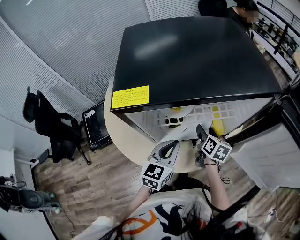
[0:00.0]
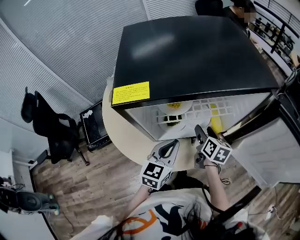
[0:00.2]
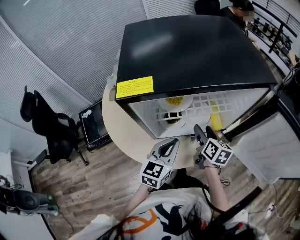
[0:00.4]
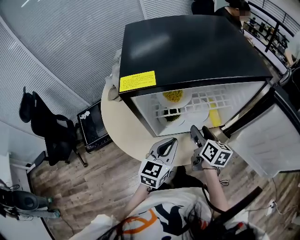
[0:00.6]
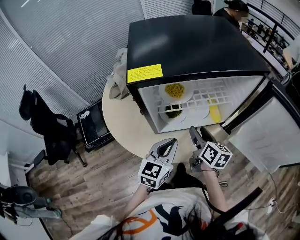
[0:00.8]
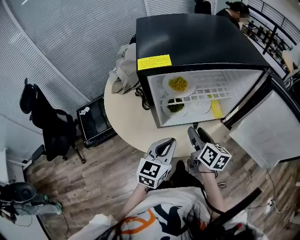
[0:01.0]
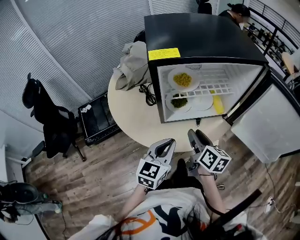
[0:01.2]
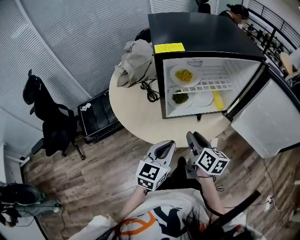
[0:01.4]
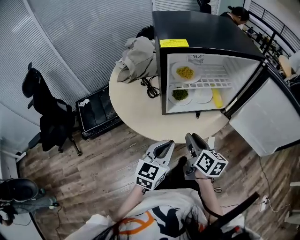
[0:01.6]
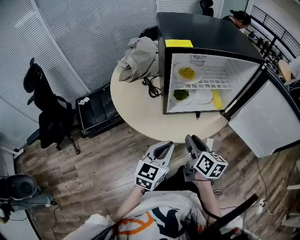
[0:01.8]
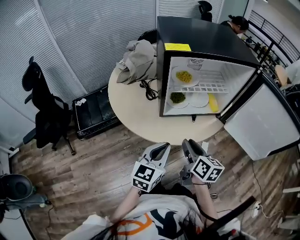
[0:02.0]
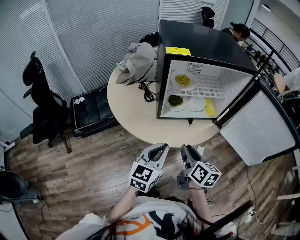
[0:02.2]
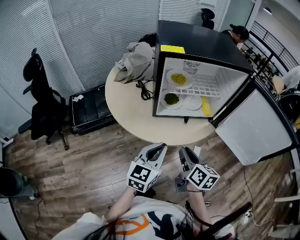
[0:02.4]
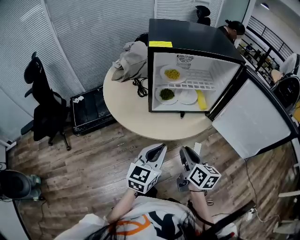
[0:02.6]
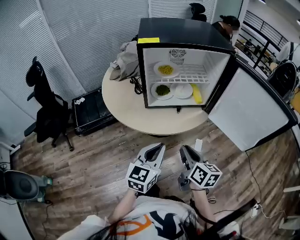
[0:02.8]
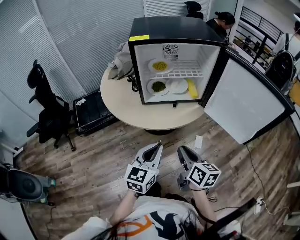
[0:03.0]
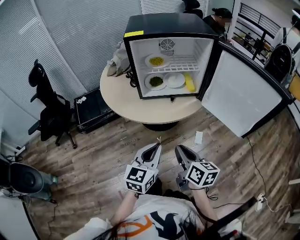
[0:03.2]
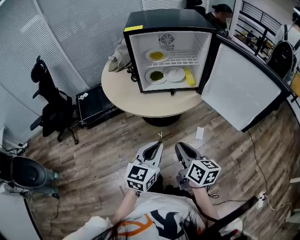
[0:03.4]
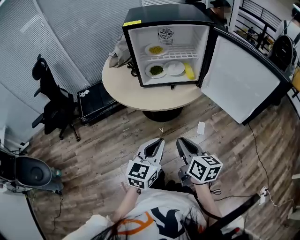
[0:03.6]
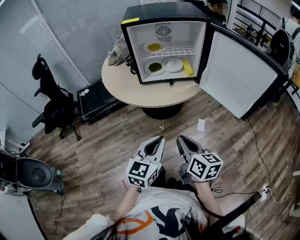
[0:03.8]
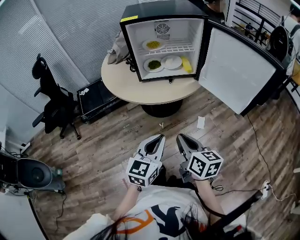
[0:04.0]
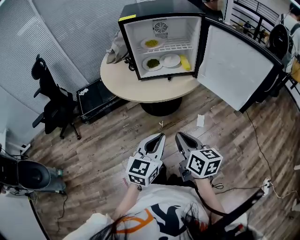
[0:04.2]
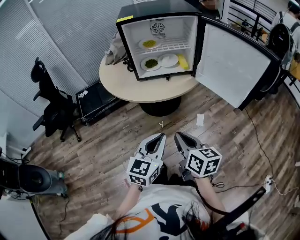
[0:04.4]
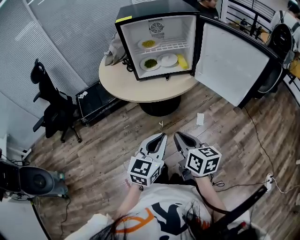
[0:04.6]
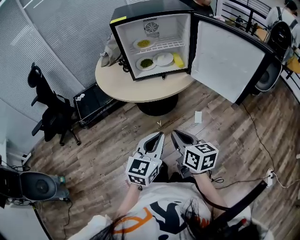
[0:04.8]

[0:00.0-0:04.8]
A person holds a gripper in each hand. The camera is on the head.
0:00.0 to 0:01.6: The two grippers go some 20 cm backward. The right gripper closes.
0:01.6 to 0:03.2: The two grippers go about 20 cm backward and to the right.
0:03.2 to 0:04.8: The grippers both shift backward by approximately 10 cm.

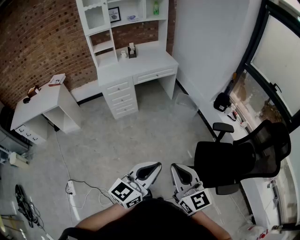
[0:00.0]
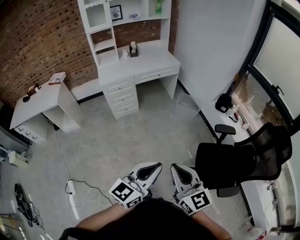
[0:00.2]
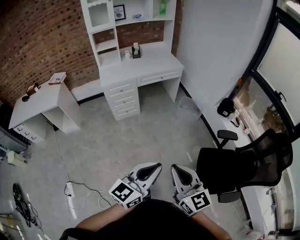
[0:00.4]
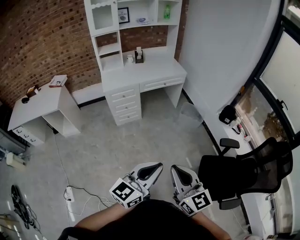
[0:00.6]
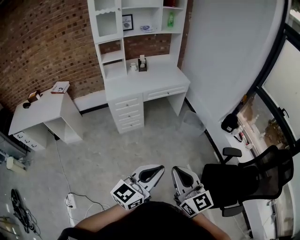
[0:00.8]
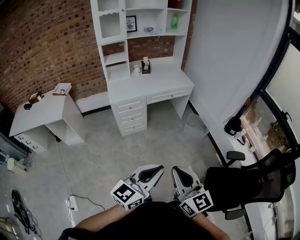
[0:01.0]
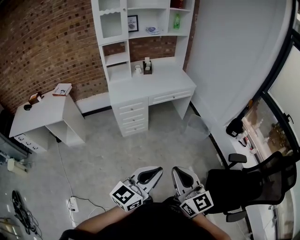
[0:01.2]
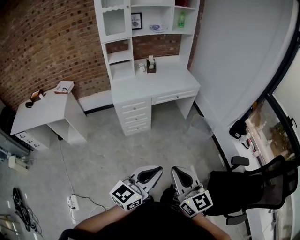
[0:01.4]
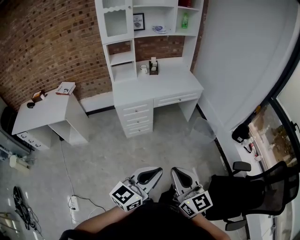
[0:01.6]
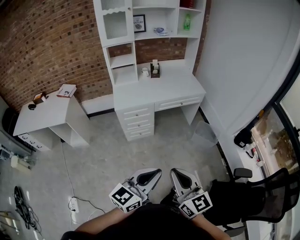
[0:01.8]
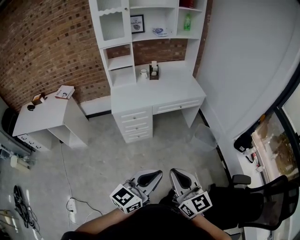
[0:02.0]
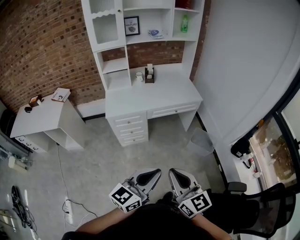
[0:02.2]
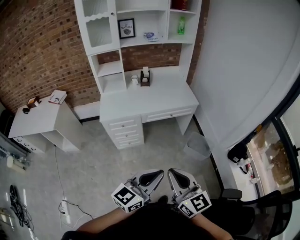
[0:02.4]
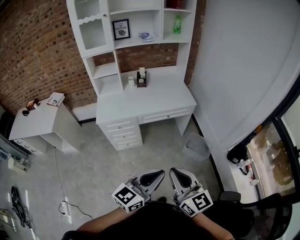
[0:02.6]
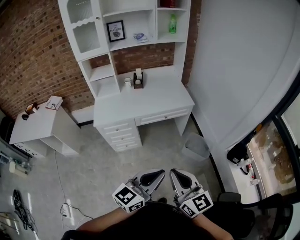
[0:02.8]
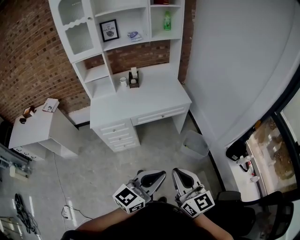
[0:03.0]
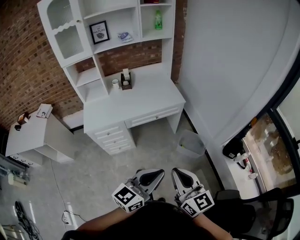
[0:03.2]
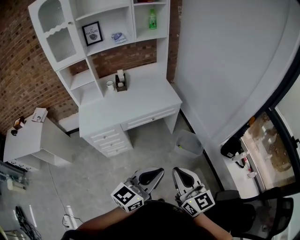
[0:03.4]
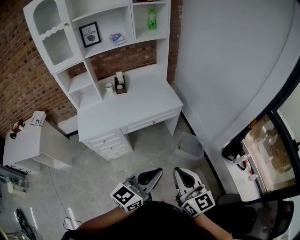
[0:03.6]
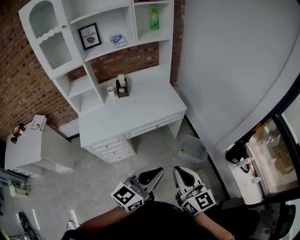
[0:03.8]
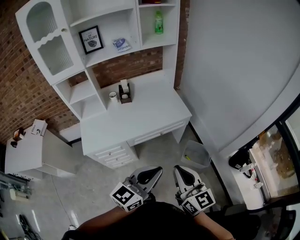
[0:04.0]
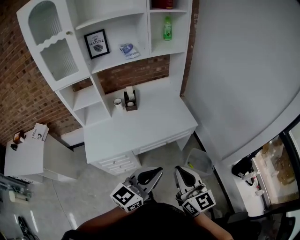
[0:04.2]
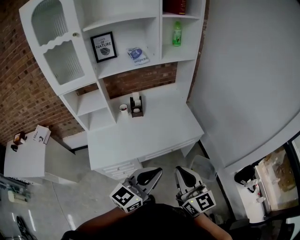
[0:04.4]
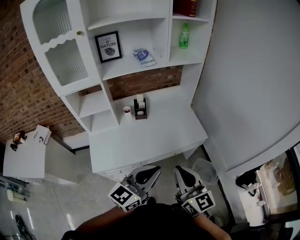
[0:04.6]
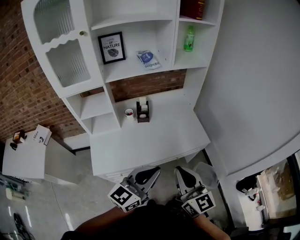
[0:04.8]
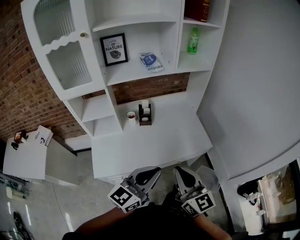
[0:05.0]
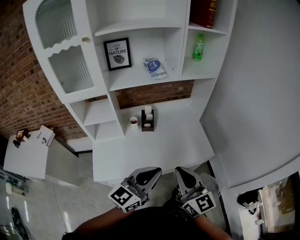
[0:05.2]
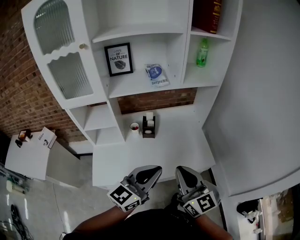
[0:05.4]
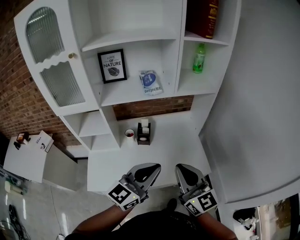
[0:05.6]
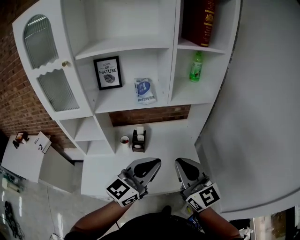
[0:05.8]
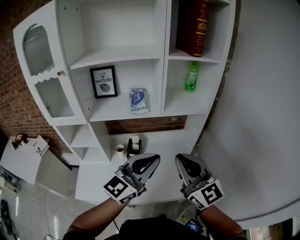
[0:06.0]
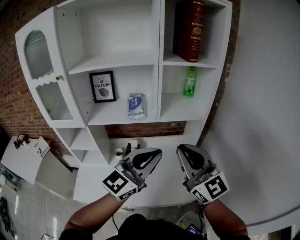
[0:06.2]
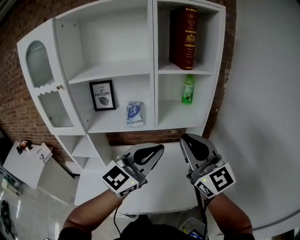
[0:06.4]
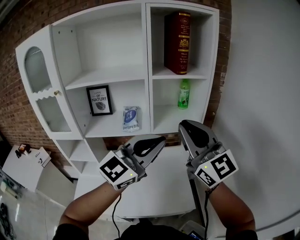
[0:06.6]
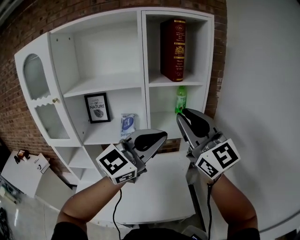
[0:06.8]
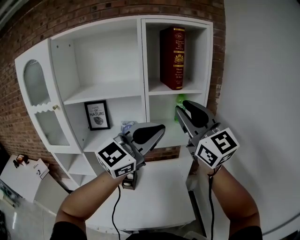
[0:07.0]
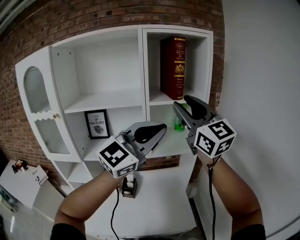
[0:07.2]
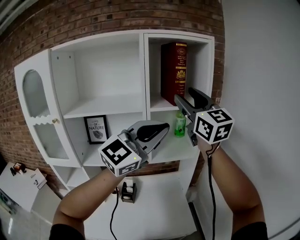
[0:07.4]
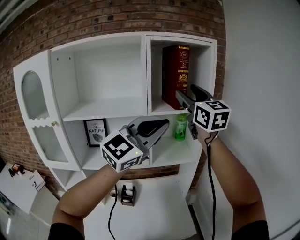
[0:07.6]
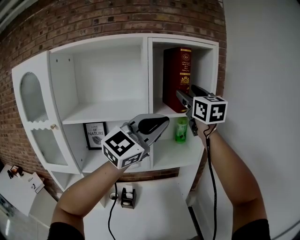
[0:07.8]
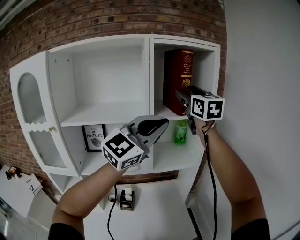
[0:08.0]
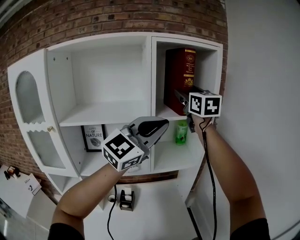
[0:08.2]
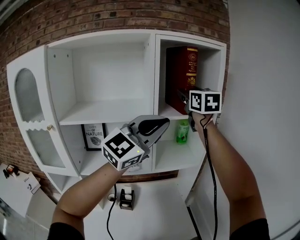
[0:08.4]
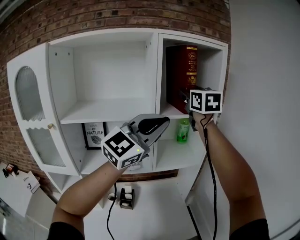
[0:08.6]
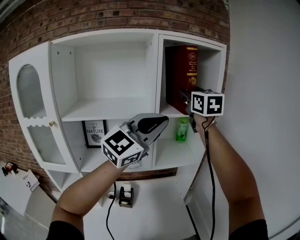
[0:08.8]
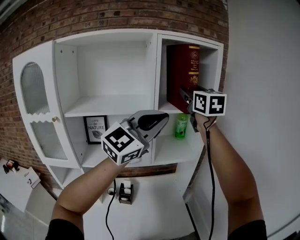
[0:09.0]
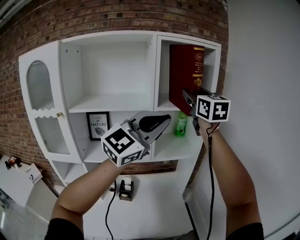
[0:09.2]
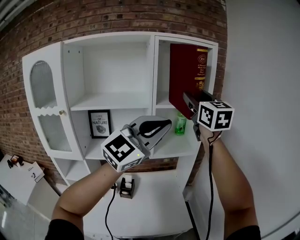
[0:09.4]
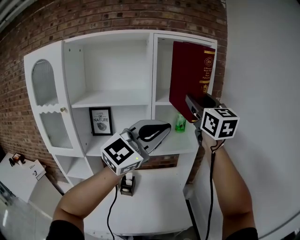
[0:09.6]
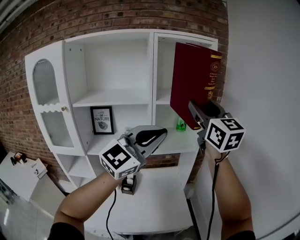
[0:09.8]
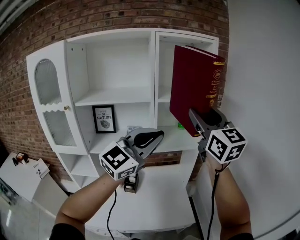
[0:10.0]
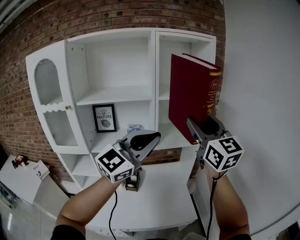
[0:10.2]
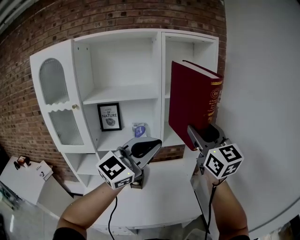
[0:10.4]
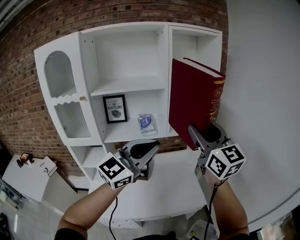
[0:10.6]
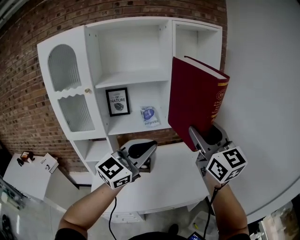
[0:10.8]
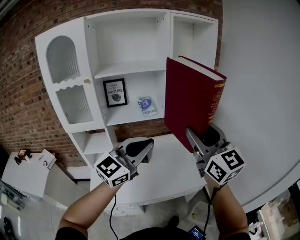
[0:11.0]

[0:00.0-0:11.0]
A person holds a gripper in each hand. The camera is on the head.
0:00.0 to 0:01.6: The grippers both shift forward and to the left by some 30 cm.
0:01.6 to 0:03.2: The grippers both shift forward and to the right by about 35 cm.
0:03.2 to 0:04.8: Both grippers are carried forward and to the left, about 40 cm.
0:04.8 to 0:06.2: The two grippers go roughly 35 cm forward, upward and to the right. The right gripper changes its angle by approximately 30 degrees, while the left gripper changes its angle by some 20 degrees.
0:06.2 to 0:07.8: The right gripper travels forward and upward by about 40 cm, and opens up; the left gripper moves upward and forward, roughly 25 cm, and rotates some 20 degrees.
0:07.8 to 0:09.4: Both grippers move backward, roughly 10 cm.
0:09.4 to 0:11.0: The left gripper travels backward, downward and to the left by about 30 cm, and rotates approximately 20 degrees; the right gripper moves backward and downward, some 35 cm.

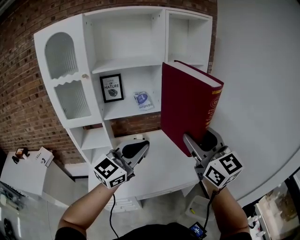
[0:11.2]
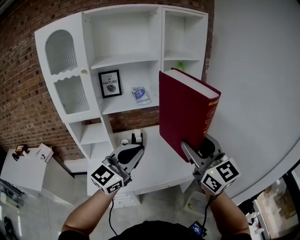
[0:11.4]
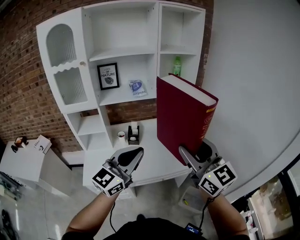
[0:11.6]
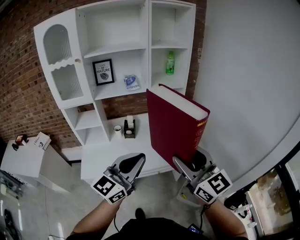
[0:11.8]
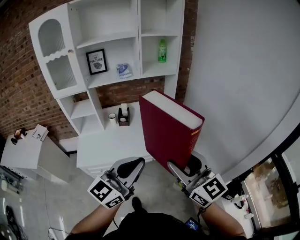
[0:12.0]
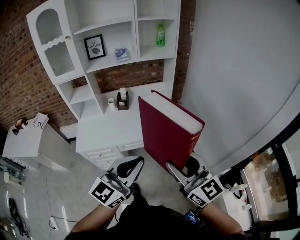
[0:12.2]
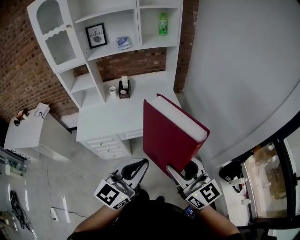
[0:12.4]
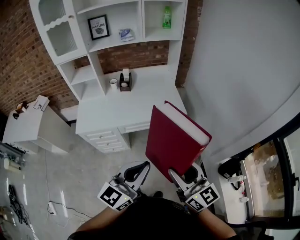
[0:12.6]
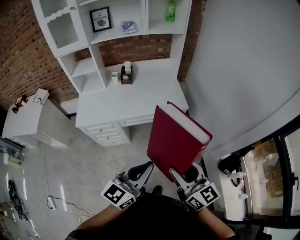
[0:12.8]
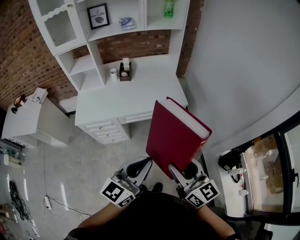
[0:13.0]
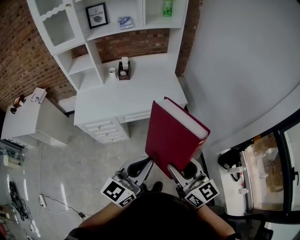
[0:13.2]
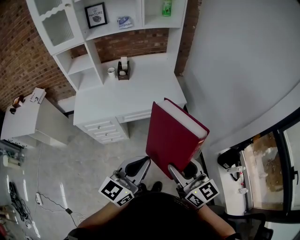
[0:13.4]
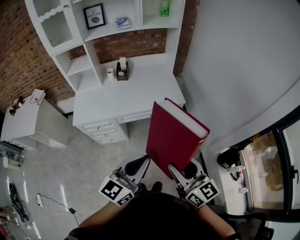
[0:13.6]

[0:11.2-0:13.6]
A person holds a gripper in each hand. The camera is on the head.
0:11.2 to 0:12.4: The right gripper heads backward, downward and to the right, covering roughly 40 cm. The left gripper is displaced backward, to the right and downward by some 40 cm.
0:12.4 to 0:13.6: Both grippers travel together downward, roughly 5 cm.

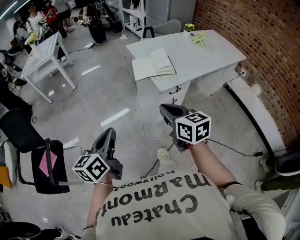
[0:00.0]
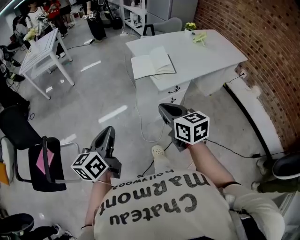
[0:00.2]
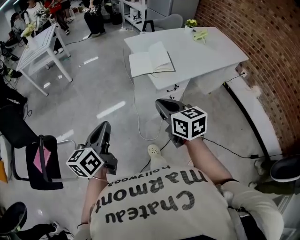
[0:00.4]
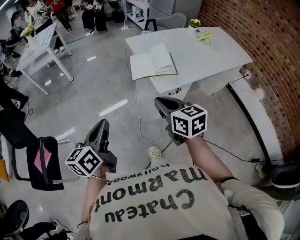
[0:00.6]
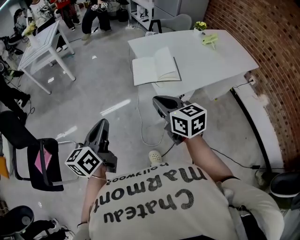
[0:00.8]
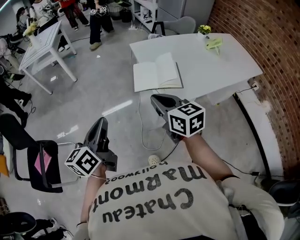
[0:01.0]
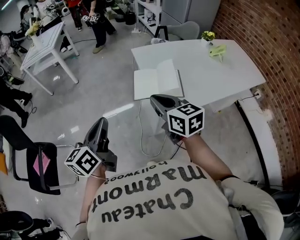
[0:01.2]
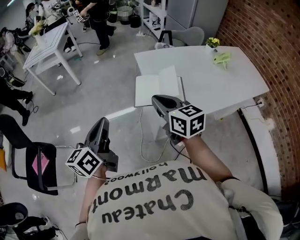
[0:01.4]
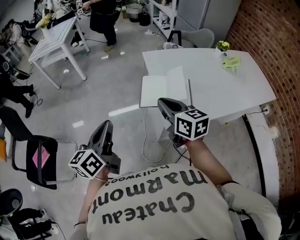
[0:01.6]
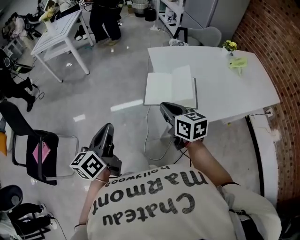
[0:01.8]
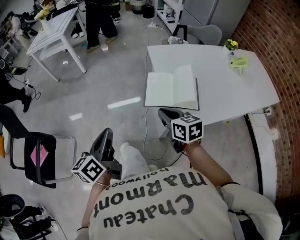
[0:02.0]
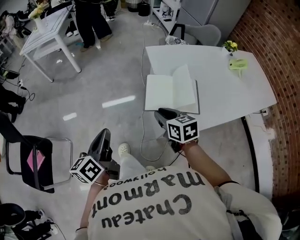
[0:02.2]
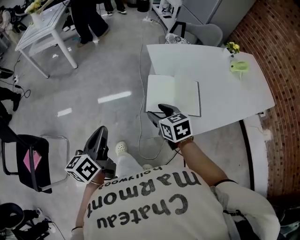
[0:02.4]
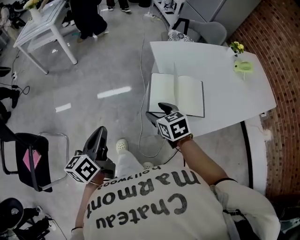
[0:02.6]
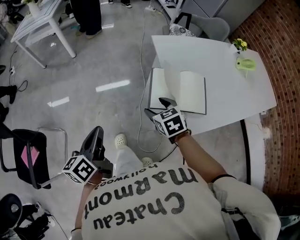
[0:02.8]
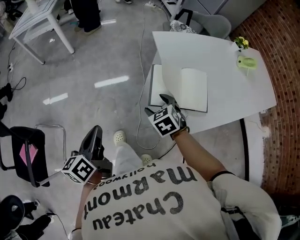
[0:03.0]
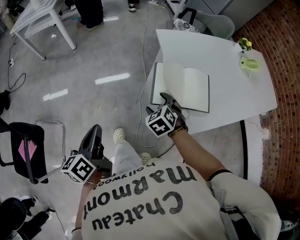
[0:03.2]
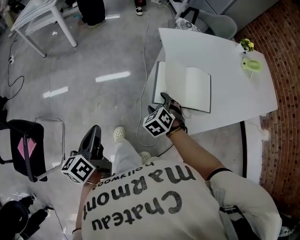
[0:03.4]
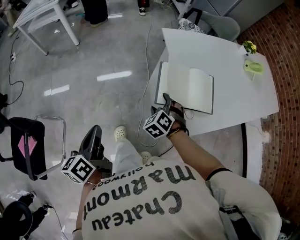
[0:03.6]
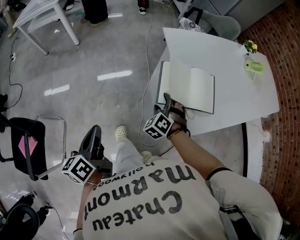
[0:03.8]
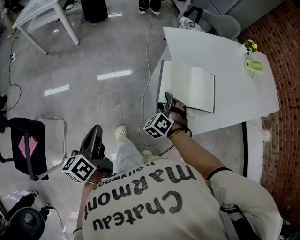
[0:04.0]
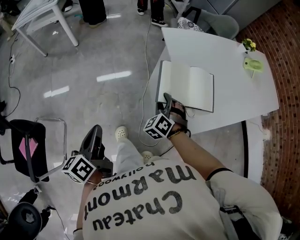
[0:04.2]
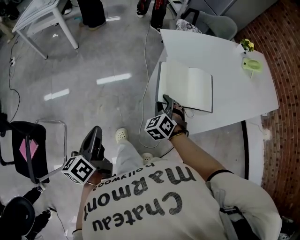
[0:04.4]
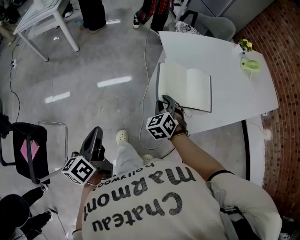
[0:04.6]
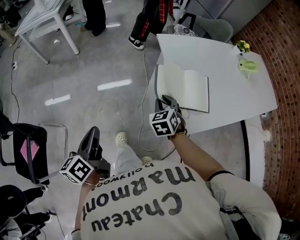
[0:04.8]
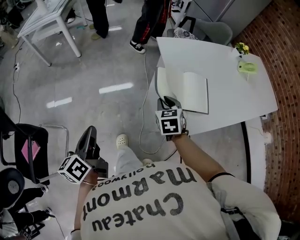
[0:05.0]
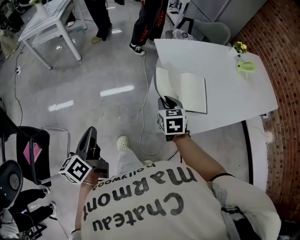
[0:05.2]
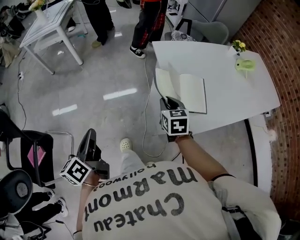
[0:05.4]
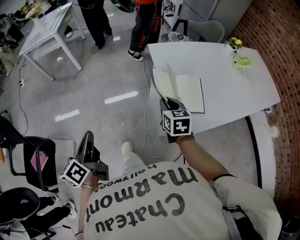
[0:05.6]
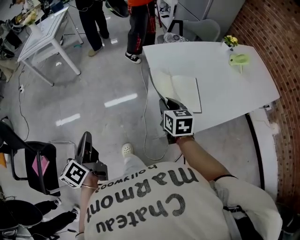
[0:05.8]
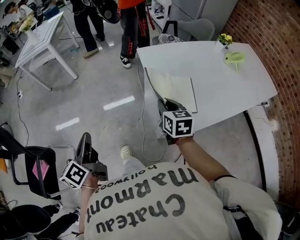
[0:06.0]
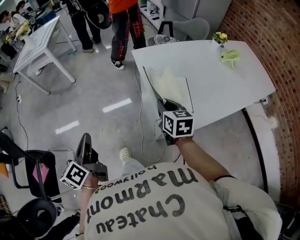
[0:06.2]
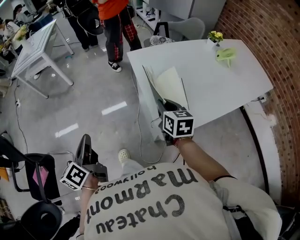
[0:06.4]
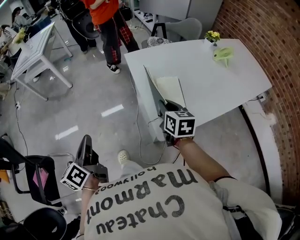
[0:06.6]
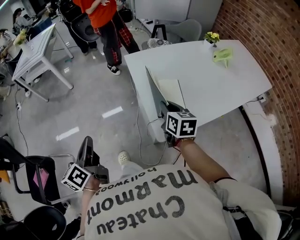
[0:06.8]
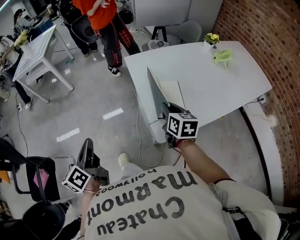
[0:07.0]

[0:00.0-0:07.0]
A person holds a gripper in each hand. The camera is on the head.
0:00.0 to 0:01.4: Both grippers travel together forward, approximately 25 cm.
0:01.4 to 0:02.8: The right gripper goes about 25 cm downward and forward, tips its fingers downward by roughly 30 degrees, and opens its fingers, while the left gripper travels downward, forward and to the left by about 20 cm.
0:02.8 to 0:04.2: The right gripper goes roughly 5 cm downward, and turns by approximately 50 degrees.
0:04.2 to 0:05.6: The left gripper shifts approximately 5 cm upward, while the right gripper travels upward and to the right by about 15 cm, twists approximately 60 degrees clockwise, seen from behind, and closes its fingers.
0:05.6 to 0:07.0: Both grippers move to the right, some 10 cm.
